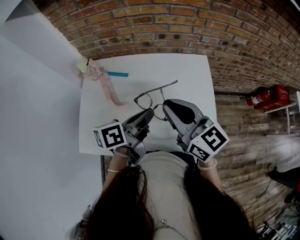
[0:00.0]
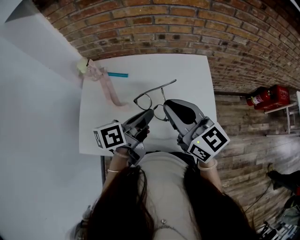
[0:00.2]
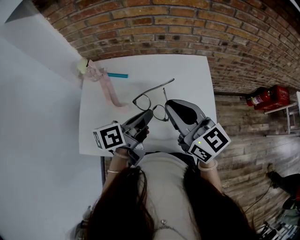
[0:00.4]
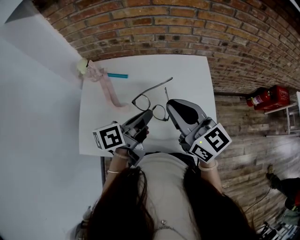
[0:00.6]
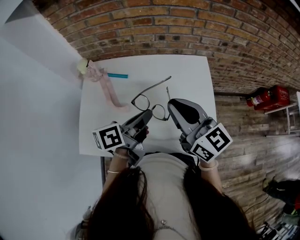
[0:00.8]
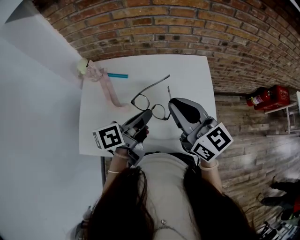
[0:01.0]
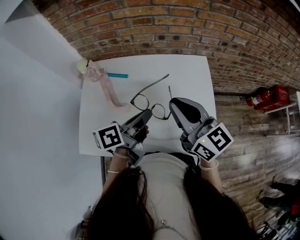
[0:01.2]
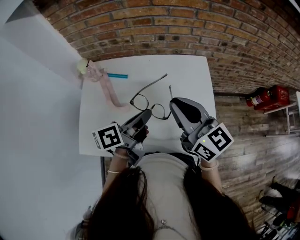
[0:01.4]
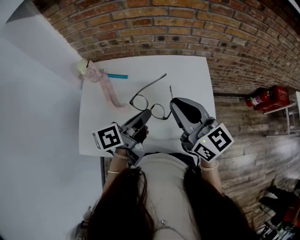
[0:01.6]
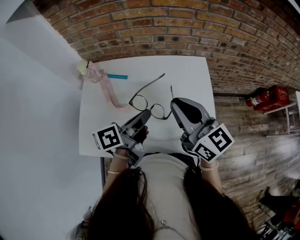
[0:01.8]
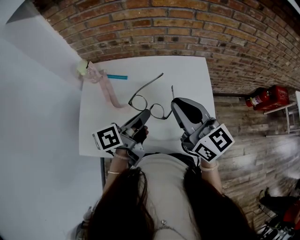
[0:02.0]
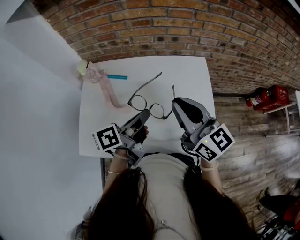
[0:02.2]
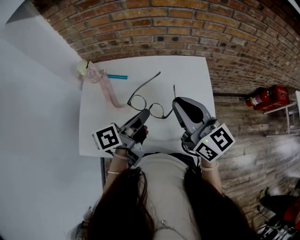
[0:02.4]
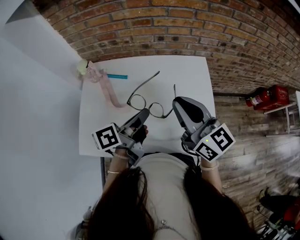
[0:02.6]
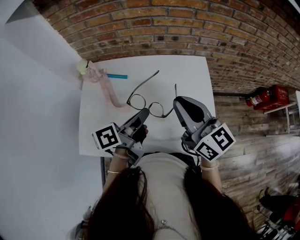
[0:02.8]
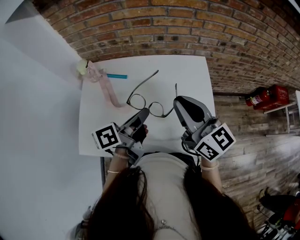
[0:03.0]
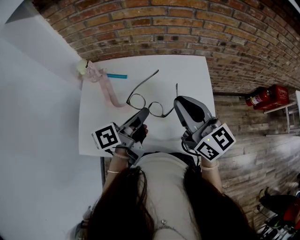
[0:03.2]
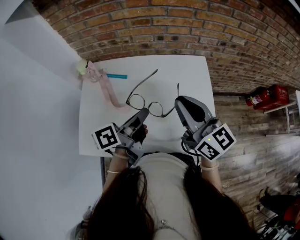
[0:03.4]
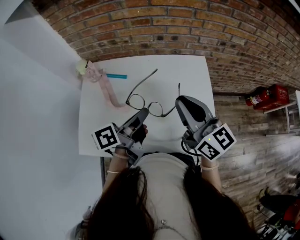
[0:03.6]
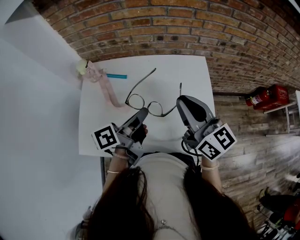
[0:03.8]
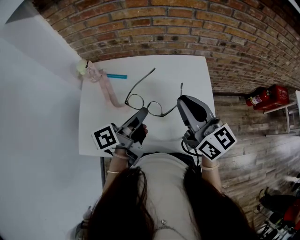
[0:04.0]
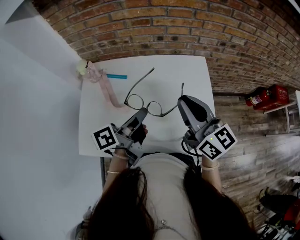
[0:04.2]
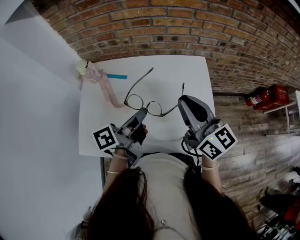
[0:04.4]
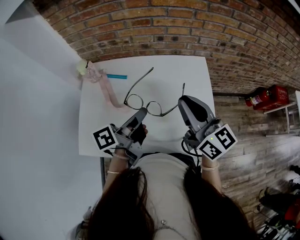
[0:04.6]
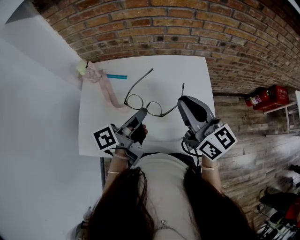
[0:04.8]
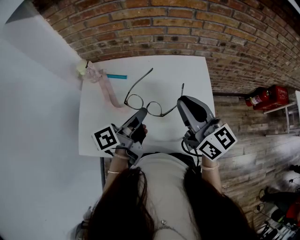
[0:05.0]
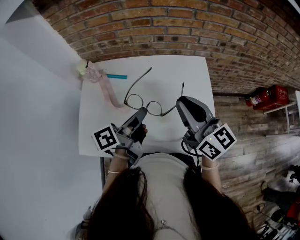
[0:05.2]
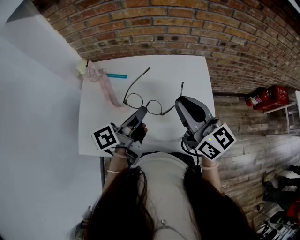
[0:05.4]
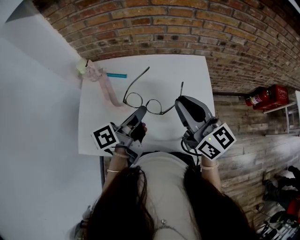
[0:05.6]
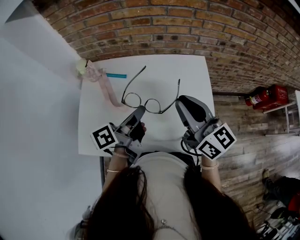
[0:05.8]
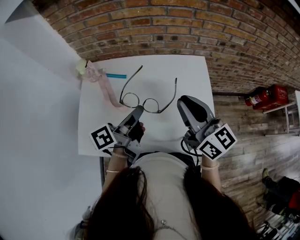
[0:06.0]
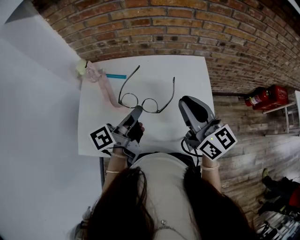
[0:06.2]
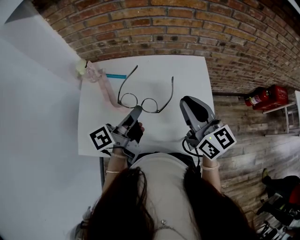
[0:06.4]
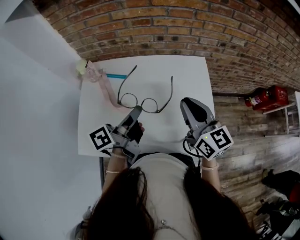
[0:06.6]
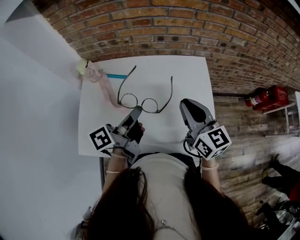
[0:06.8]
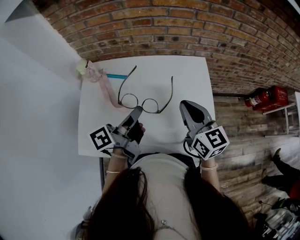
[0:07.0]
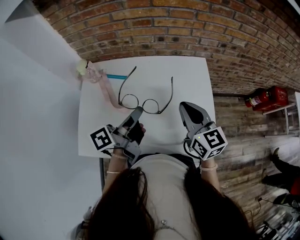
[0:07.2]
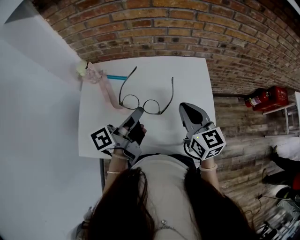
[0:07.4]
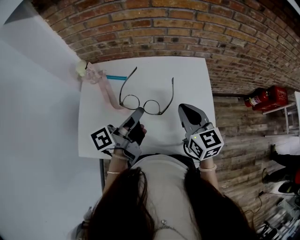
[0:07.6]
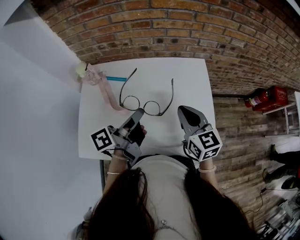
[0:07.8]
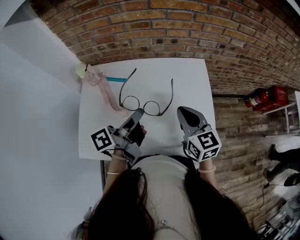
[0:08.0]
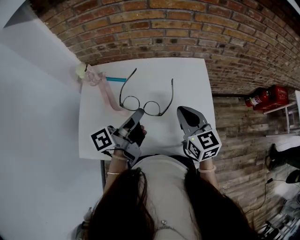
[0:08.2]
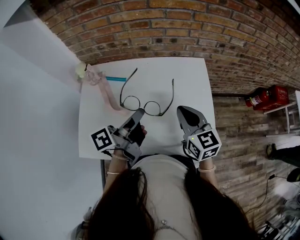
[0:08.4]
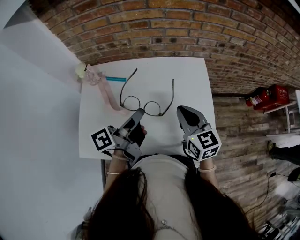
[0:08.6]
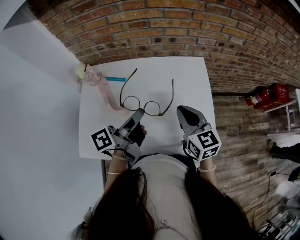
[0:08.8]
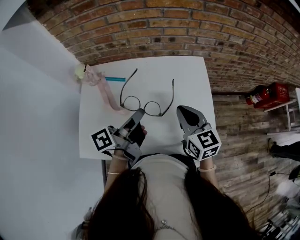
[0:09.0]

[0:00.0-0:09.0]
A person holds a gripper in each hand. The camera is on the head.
0:00.0 to 0:03.0: The grippers make only small movements.
0:03.0 to 0:04.4: The grippers move only a little.
0:04.4 to 0:06.0: The two grippers keep their place.
0:06.0 to 0:07.6: The right gripper heads downward, covering approximately 10 cm, and swivels roughly 20 degrees.
0:07.6 to 0:09.0: Neither gripper changes place.

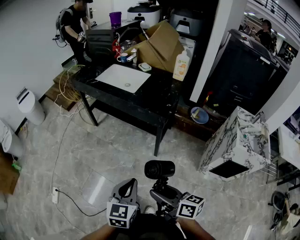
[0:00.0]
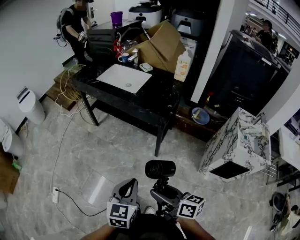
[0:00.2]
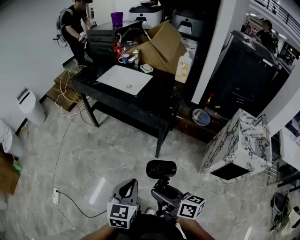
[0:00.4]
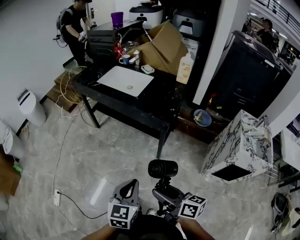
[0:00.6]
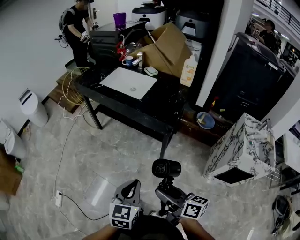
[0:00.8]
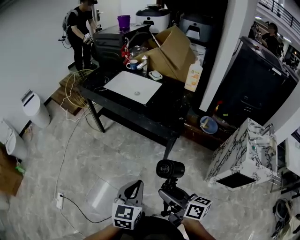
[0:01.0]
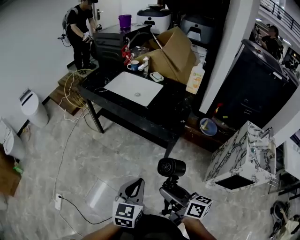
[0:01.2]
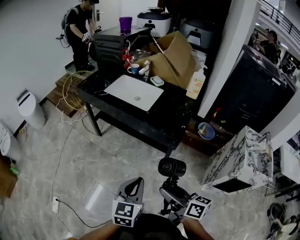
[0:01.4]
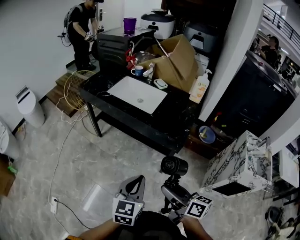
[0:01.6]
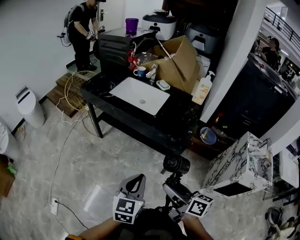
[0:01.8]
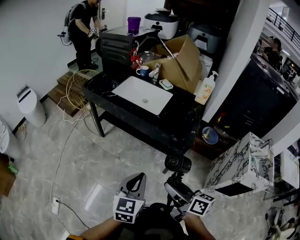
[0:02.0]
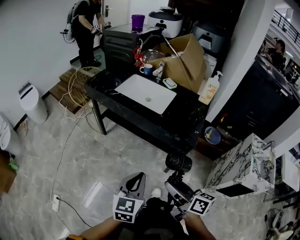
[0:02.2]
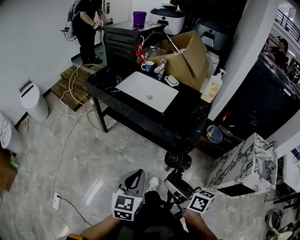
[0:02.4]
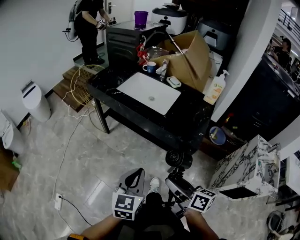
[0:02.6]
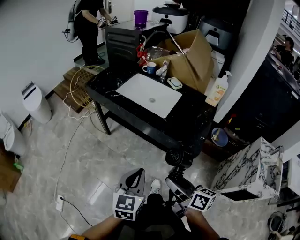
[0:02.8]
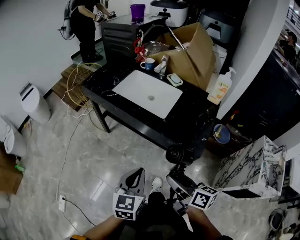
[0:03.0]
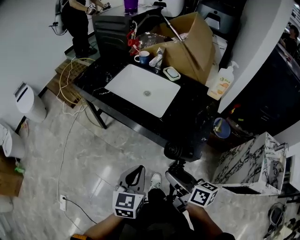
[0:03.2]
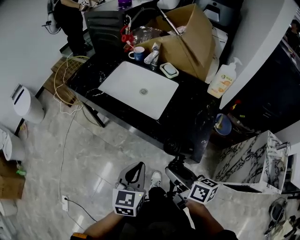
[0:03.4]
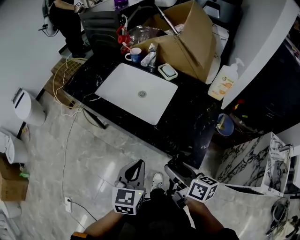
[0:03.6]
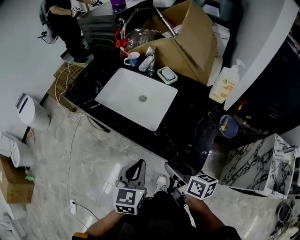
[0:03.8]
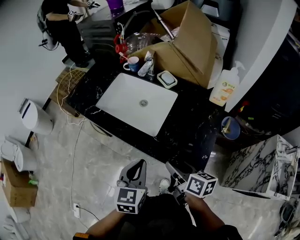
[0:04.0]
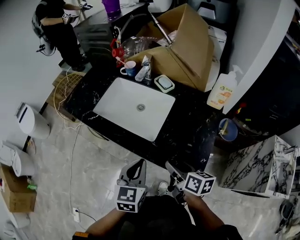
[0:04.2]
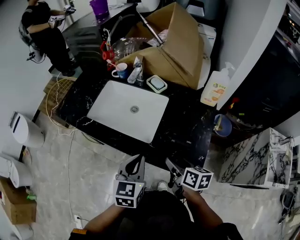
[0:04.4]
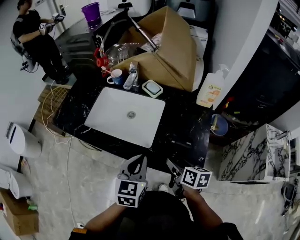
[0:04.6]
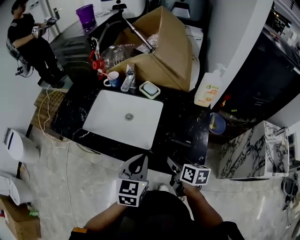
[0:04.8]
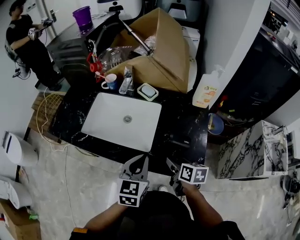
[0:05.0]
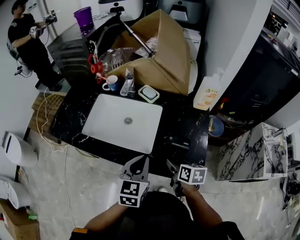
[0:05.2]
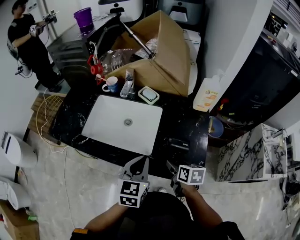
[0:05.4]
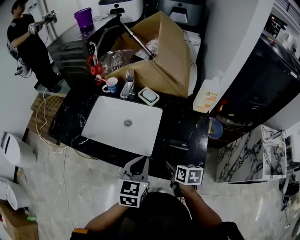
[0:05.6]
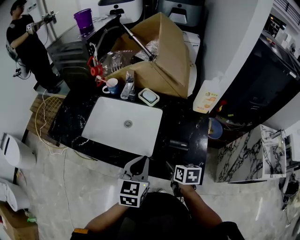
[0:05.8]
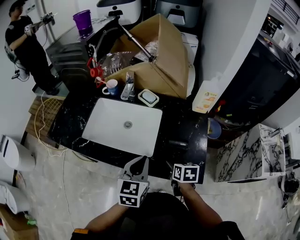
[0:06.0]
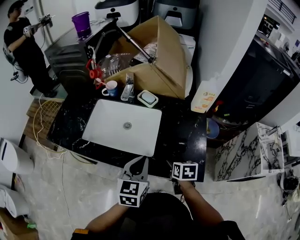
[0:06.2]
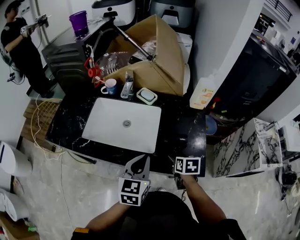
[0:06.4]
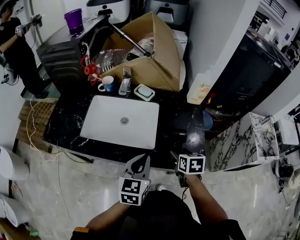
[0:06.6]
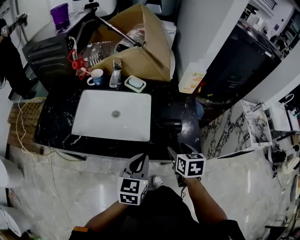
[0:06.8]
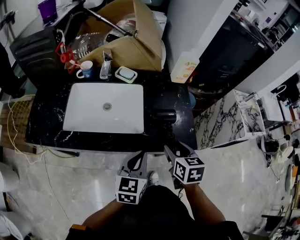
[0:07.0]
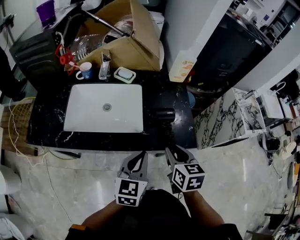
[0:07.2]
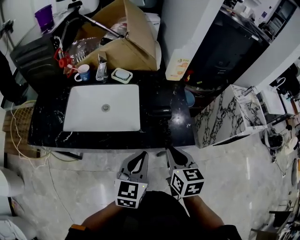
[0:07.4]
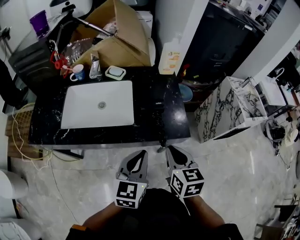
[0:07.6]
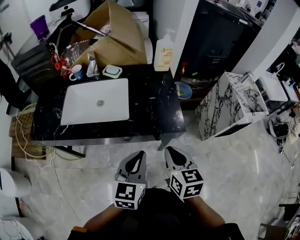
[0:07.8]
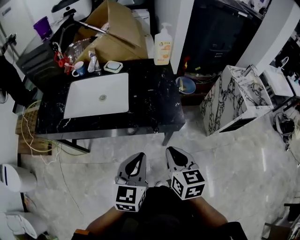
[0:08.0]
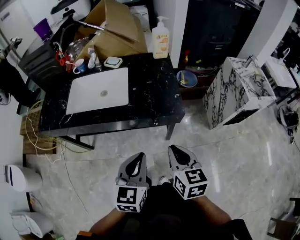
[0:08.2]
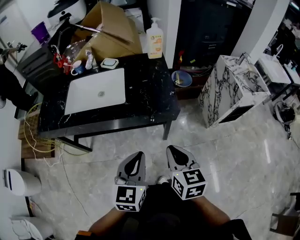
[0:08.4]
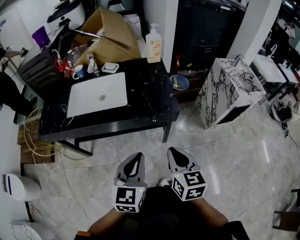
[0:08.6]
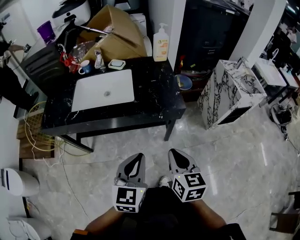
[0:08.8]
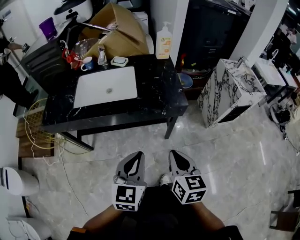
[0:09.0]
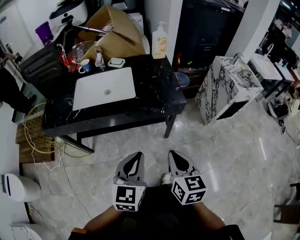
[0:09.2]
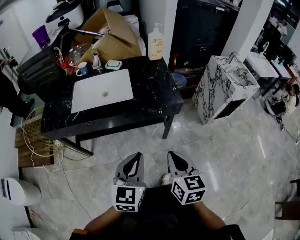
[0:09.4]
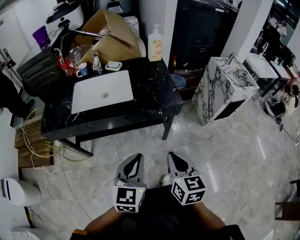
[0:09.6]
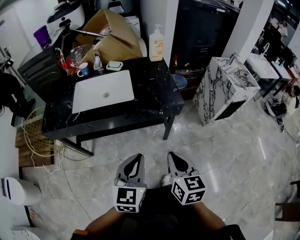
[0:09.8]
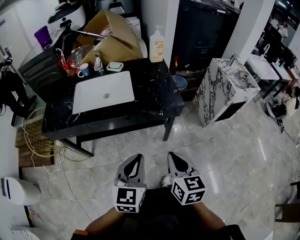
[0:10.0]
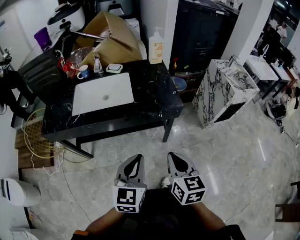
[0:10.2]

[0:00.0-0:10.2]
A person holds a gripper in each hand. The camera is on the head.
0:00.0 to 0:01.4: The two grippers go about 15 cm forward.
0:01.4 to 0:03.0: Both grippers travel together forward, roughly 20 cm.
0:03.0 to 0:04.4: The two grippers go roughly 25 cm forward and to the right. The right gripper turns by about 20 degrees.
0:04.4 to 0:05.8: The right gripper ends up about 5 cm from where it was, and rotates some 20 degrees; the left gripper moves forward, about 5 cm.
0:05.8 to 0:07.2: The left gripper travels backward by approximately 10 cm; the right gripper is displaced upward and backward by approximately 15 cm, swivels about 20 degrees, and closes up.
0:07.2 to 0:08.8: The two grippers go roughly 25 cm backward. The right gripper closes its fingers.
0:08.8 to 0:10.2: The right gripper changes place by some 5 cm.

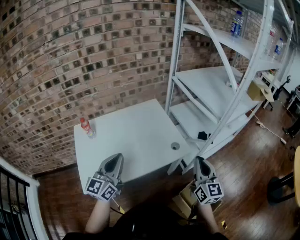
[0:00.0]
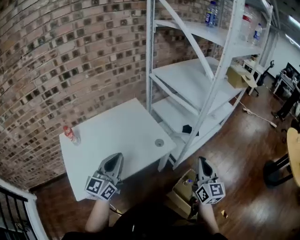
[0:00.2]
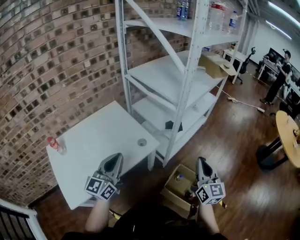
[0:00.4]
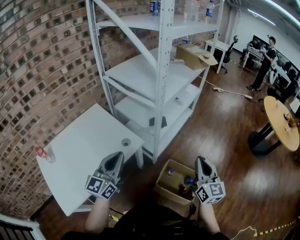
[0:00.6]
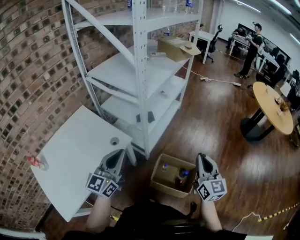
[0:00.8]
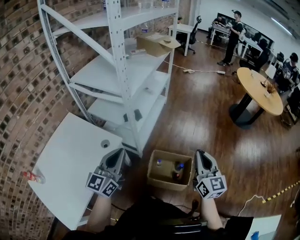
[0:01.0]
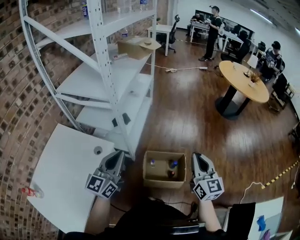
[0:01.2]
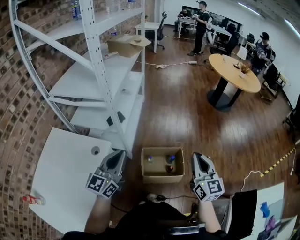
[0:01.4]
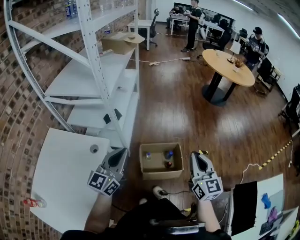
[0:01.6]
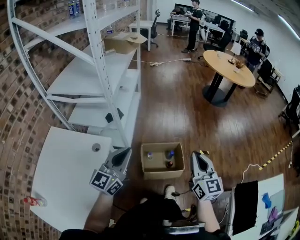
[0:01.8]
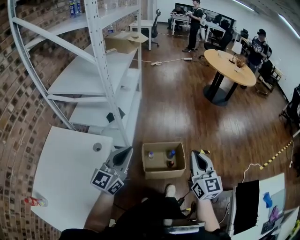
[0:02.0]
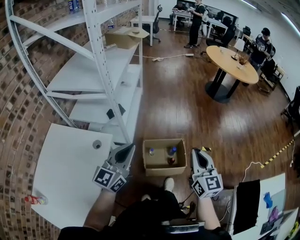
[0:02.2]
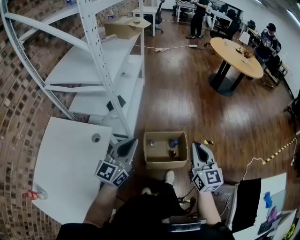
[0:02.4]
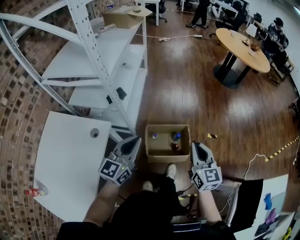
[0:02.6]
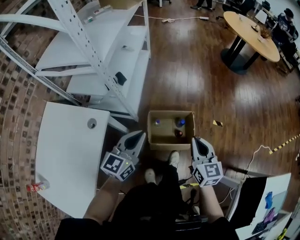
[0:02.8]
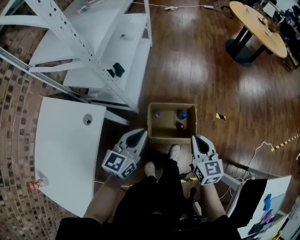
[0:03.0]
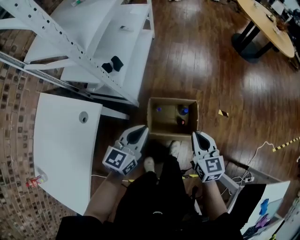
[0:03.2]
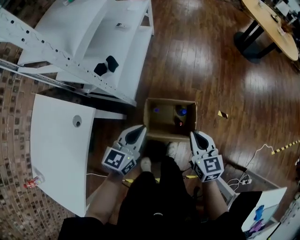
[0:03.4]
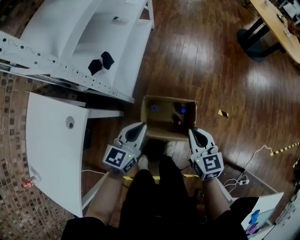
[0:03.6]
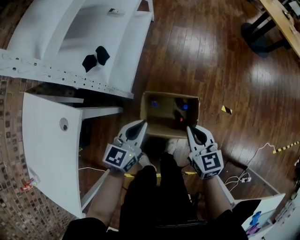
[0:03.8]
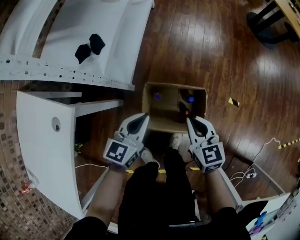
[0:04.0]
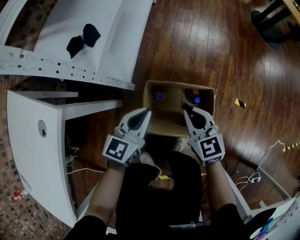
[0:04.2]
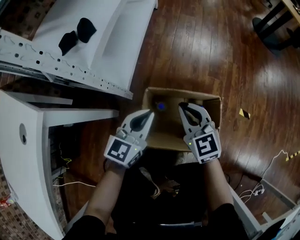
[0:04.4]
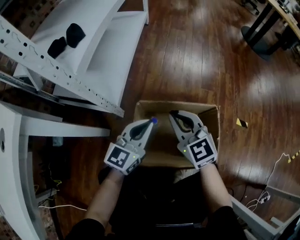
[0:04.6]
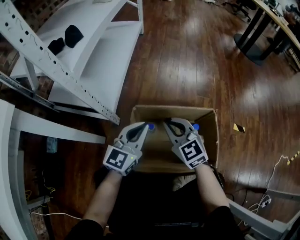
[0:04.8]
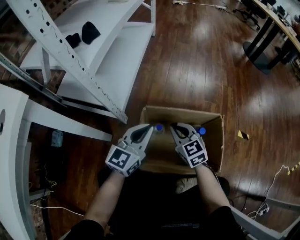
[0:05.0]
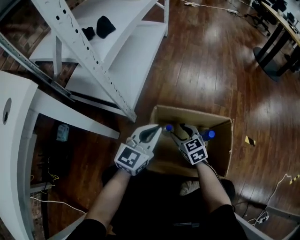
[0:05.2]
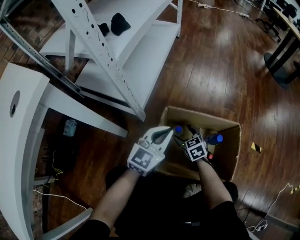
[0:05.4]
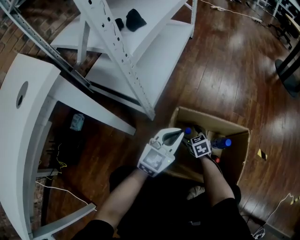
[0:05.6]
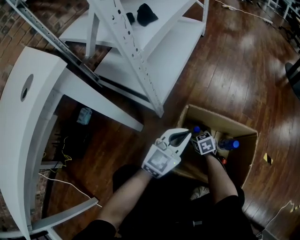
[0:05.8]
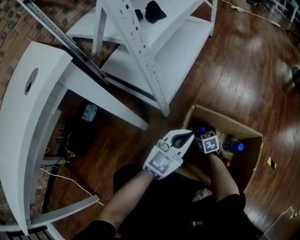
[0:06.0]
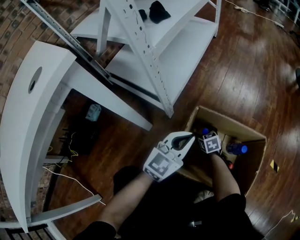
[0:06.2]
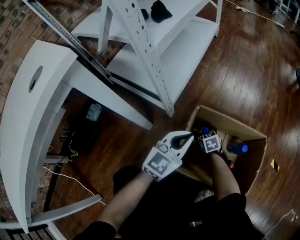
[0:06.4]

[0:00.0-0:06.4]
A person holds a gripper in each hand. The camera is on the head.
0:00.0 to 0:01.6: The left gripper moves some 35 cm, and turns by some 60 degrees; the right gripper ends up some 35 cm from where it was, and turns by about 50 degrees.
0:01.6 to 0:03.2: The right gripper moves downward and forward, some 25 cm, and turns by roughly 30 degrees. The left gripper goes about 25 cm downward, forward and to the right, and changes its angle by approximately 20 degrees.
0:03.2 to 0:04.8: The grippers both shift downward by roughly 40 cm. The right gripper swivels about 30 degrees.
0:04.8 to 0:06.4: The right gripper travels downward by about 30 cm, angles its fingers downward, by roughly 30 degrees, and opens its fingers; the left gripper is displaced to the left by roughly 5 cm.
